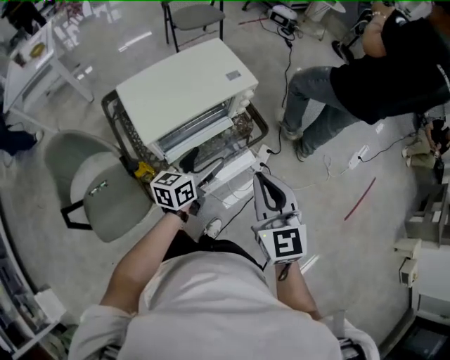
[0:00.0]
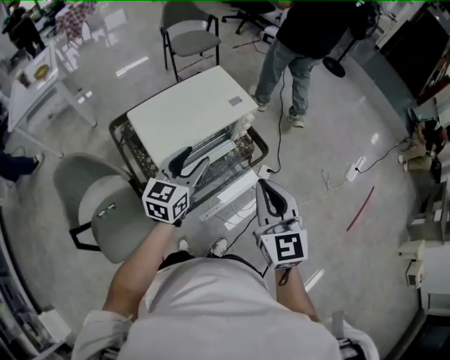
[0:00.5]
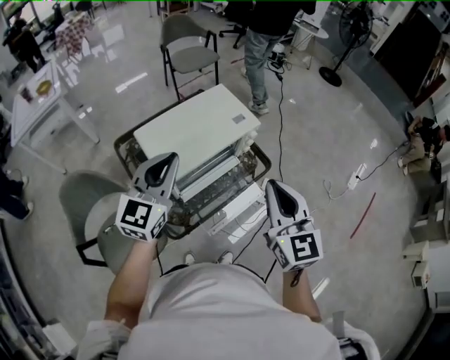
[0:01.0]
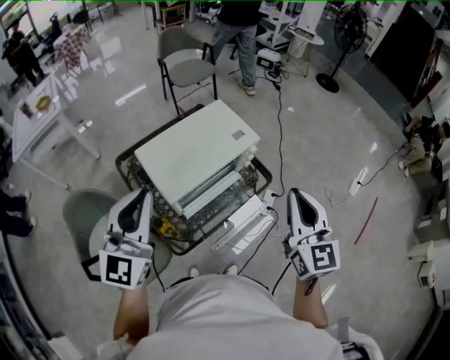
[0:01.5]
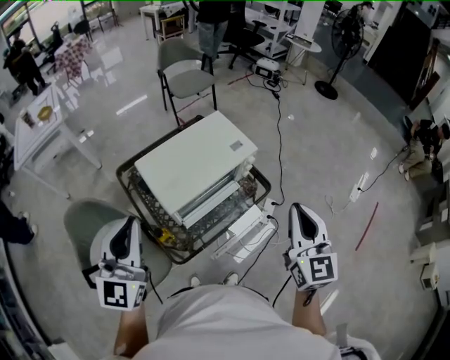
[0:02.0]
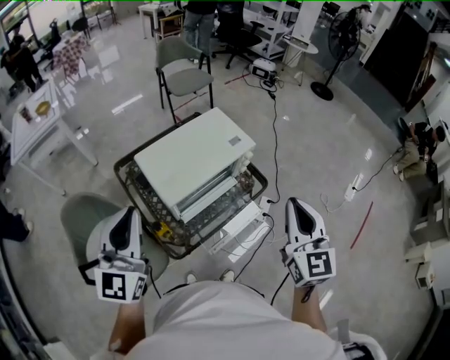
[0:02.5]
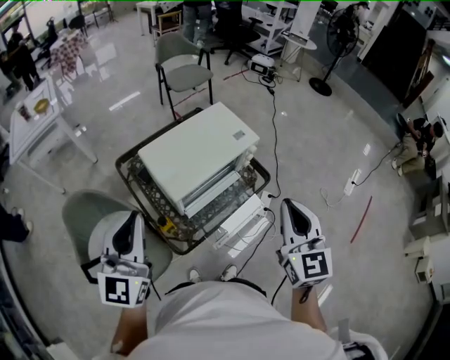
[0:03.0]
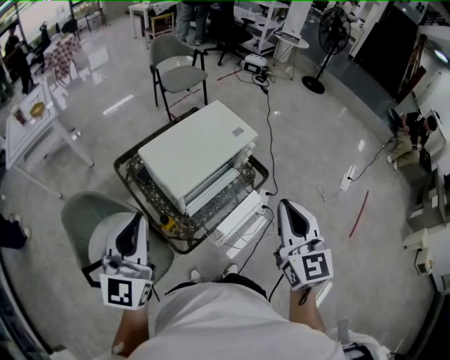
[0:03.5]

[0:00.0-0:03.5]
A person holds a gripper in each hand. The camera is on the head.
0:00.0 to 0:02.0: The left gripper shifts approximately 35 cm upward and to the left, rolls clockwise, seen from behind, by some 40 degrees, and closes, while the right gripper shifts approximately 10 cm upward.
0:02.0 to 0:03.5: The left gripper moves about 5 cm; the right gripper goes some 10 cm to the left and backward.

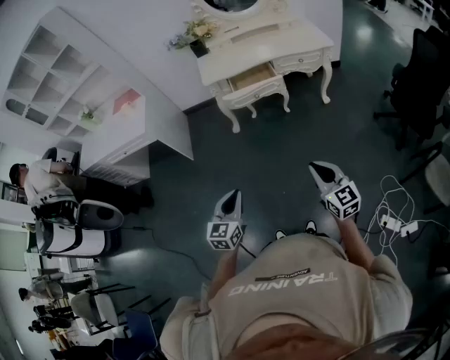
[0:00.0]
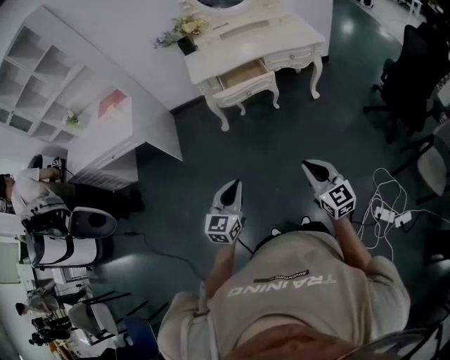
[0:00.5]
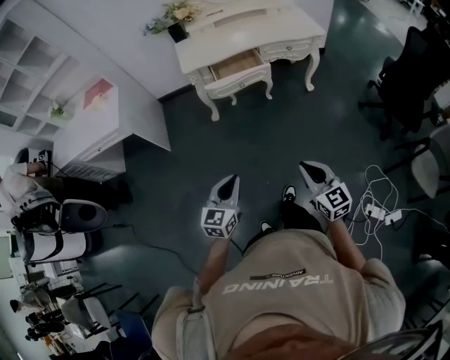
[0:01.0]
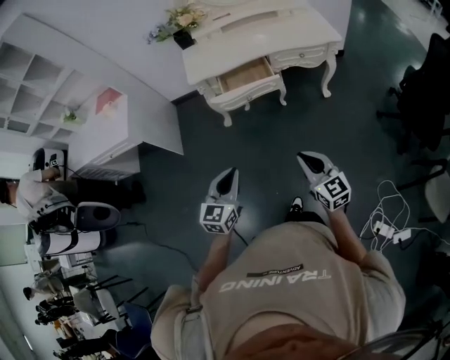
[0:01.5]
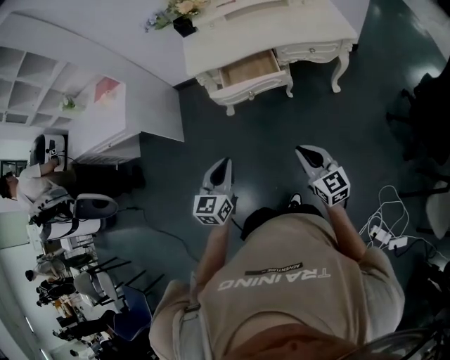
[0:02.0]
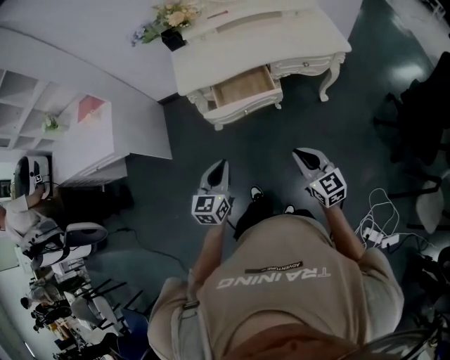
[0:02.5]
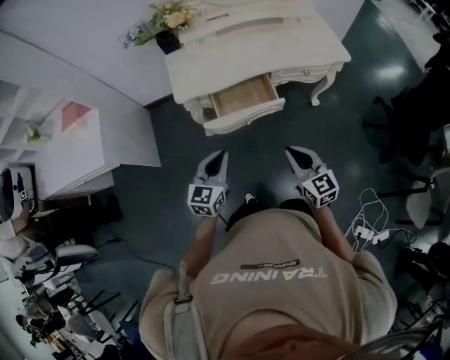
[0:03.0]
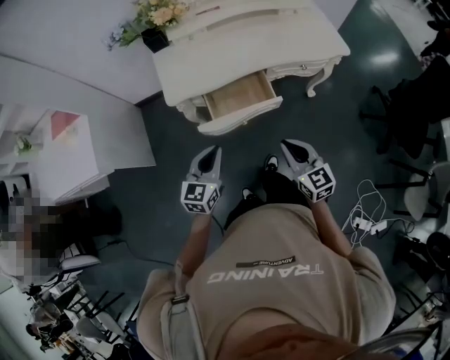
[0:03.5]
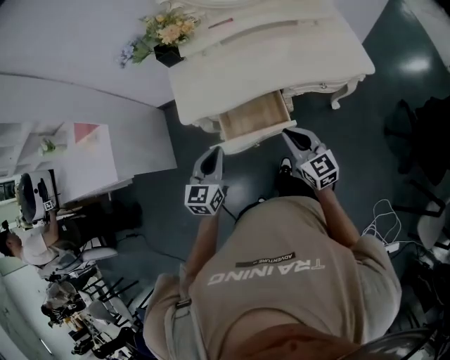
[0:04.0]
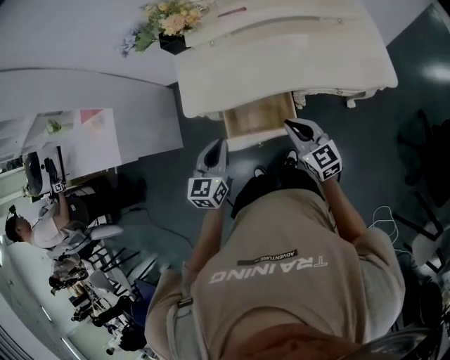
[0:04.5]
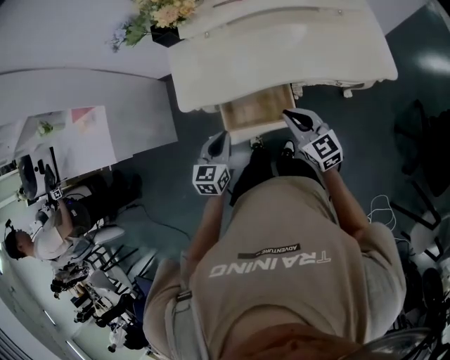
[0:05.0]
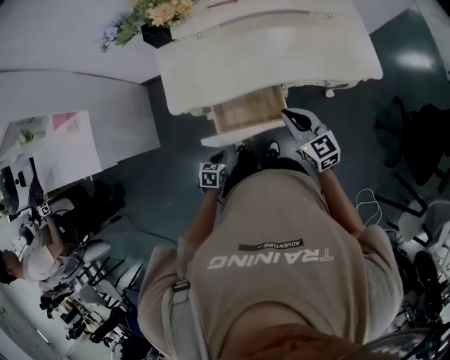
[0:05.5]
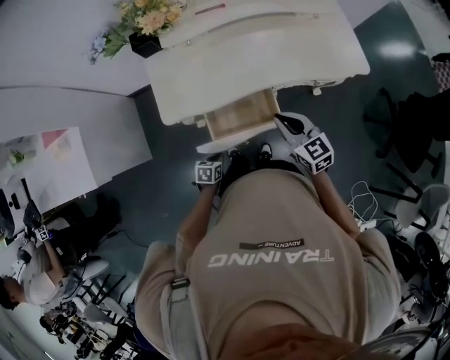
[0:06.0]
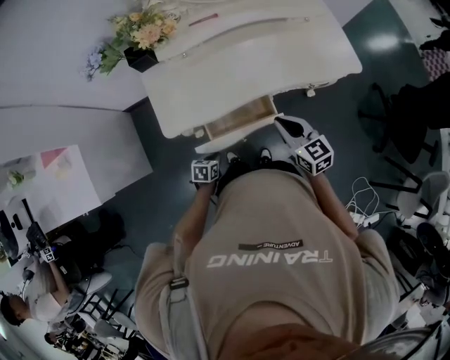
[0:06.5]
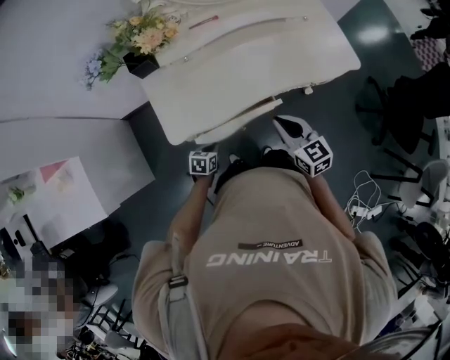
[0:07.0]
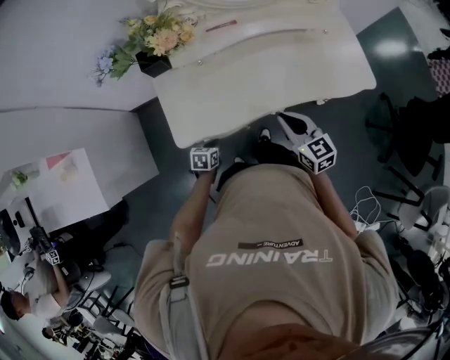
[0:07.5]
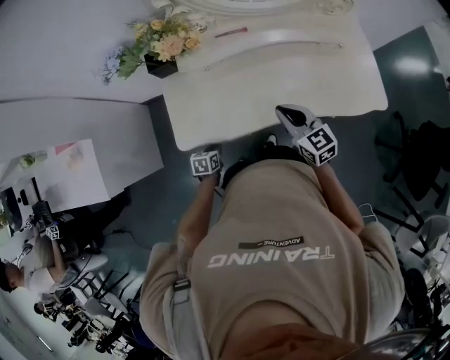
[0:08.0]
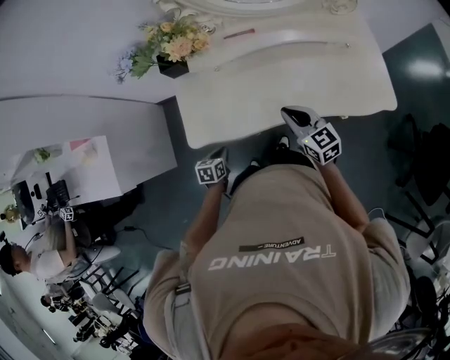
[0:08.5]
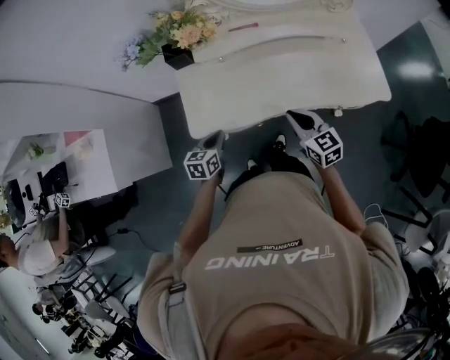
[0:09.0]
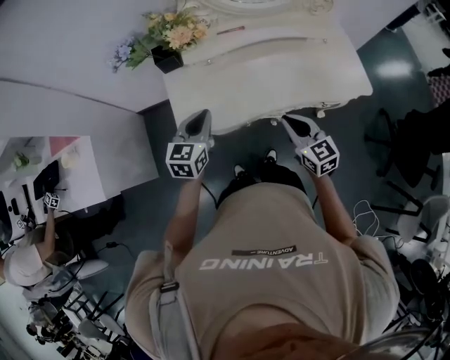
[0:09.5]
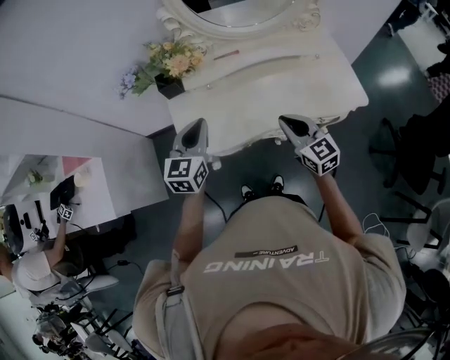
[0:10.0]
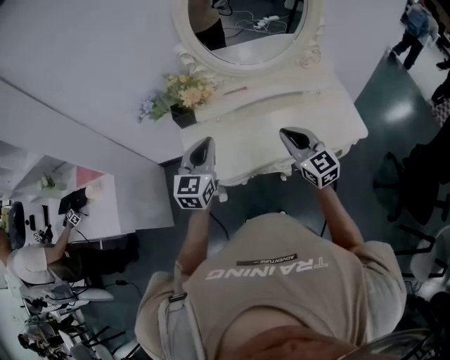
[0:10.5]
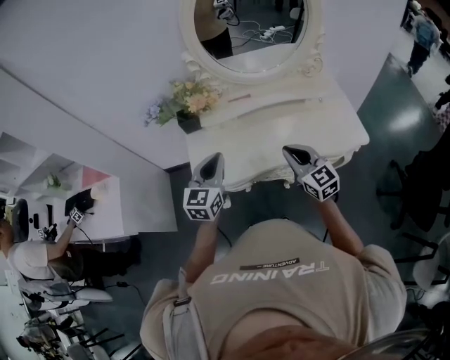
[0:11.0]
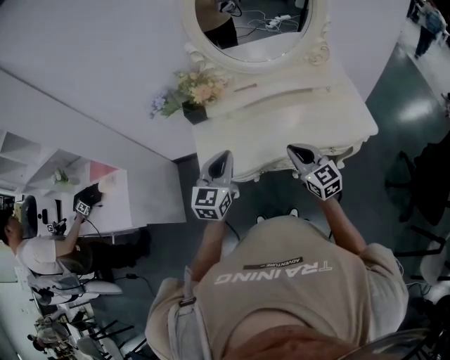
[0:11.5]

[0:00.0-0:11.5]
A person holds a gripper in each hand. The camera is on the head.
0:00.0 to 0:02.0: Both grippers travel together forward, roughly 30 cm.
0:02.0 to 0:04.0: The pair of grippers is taken forward, about 40 cm.
0:04.0 to 0:06.0: The right gripper heads forward, covering some 10 cm. Meanwhile the left gripper shifts roughly 30 cm downward, and angles its fingers downward, by roughly 40 degrees.
0:06.0 to 0:07.5: The left gripper goes roughly 20 cm forward and to the left. The right gripper goes some 10 cm forward and to the left.
0:07.5 to 0:09.5: The right gripper goes roughly 5 cm backward, while the left gripper is displaced upward by roughly 30 cm, and points its fingers approximately 30 degrees further upward.
0:09.5 to 0:11.5: The right gripper shifts some 10 cm upward; the left gripper moves upward, to the right and backward, some 15 cm.

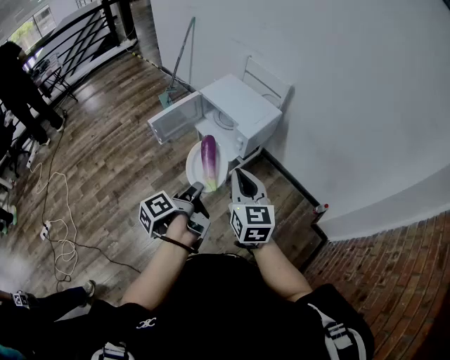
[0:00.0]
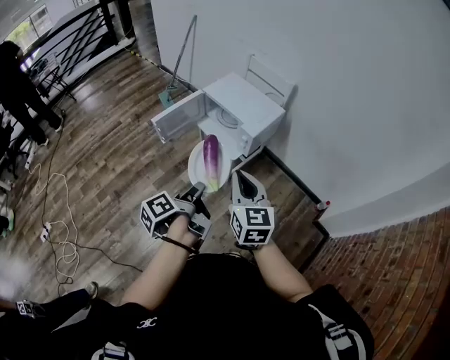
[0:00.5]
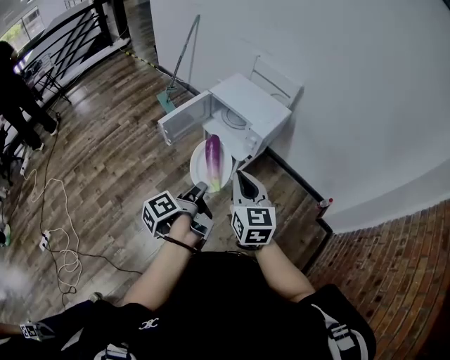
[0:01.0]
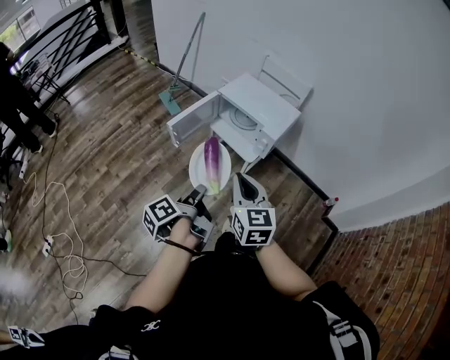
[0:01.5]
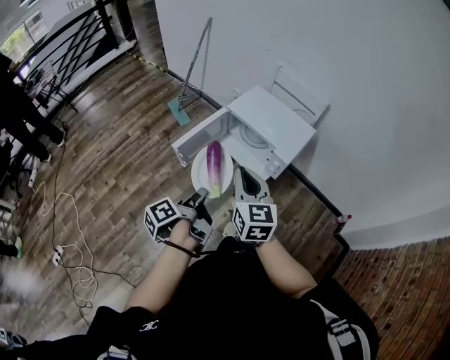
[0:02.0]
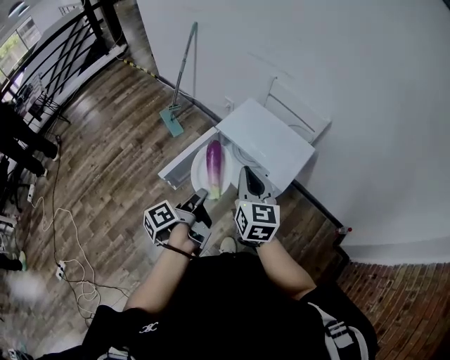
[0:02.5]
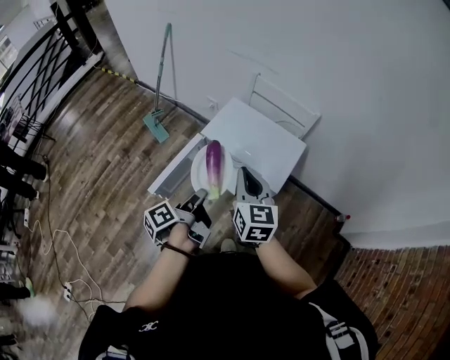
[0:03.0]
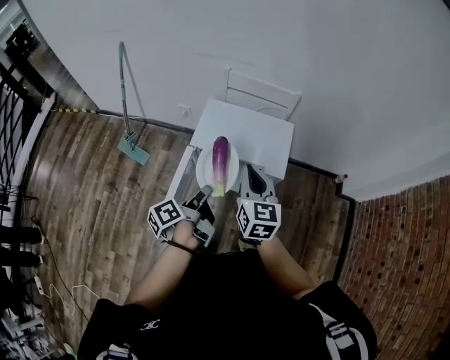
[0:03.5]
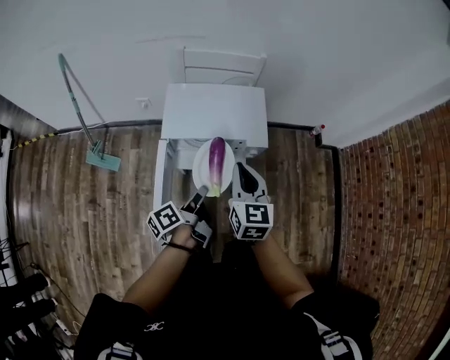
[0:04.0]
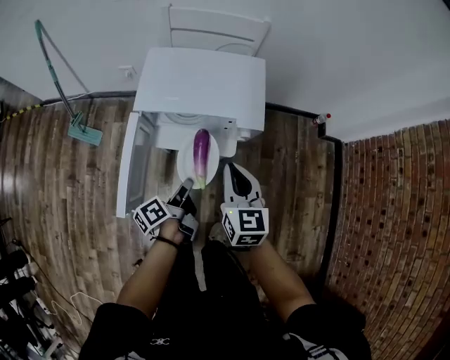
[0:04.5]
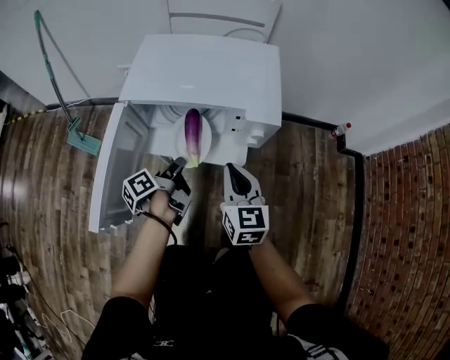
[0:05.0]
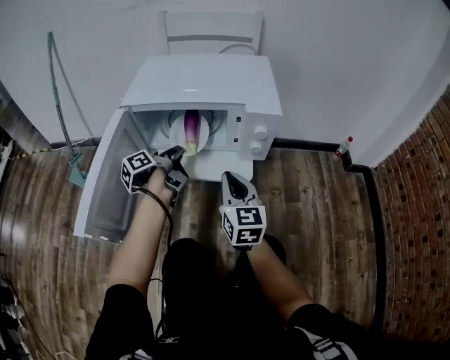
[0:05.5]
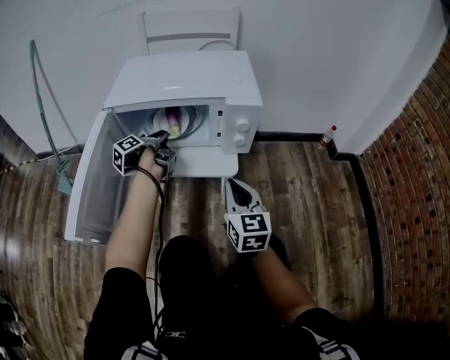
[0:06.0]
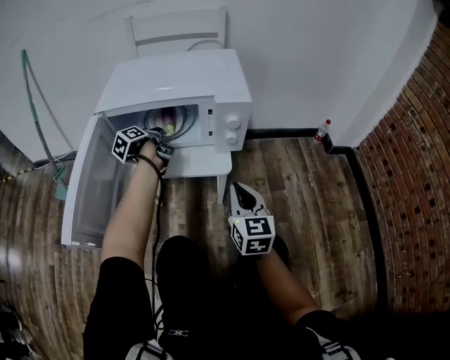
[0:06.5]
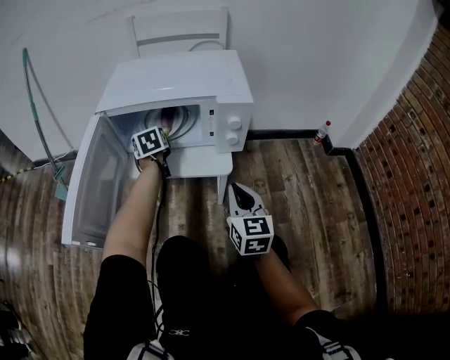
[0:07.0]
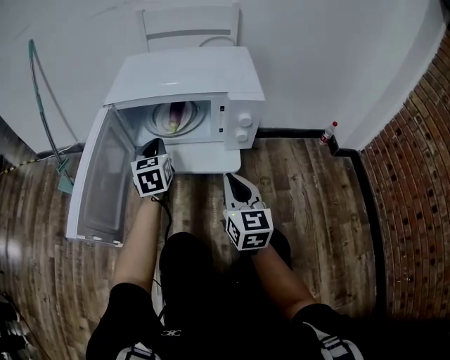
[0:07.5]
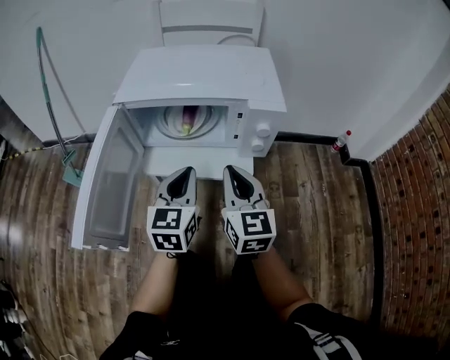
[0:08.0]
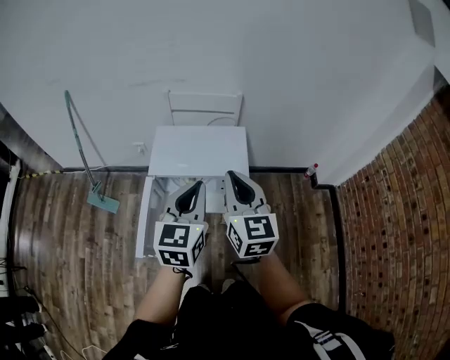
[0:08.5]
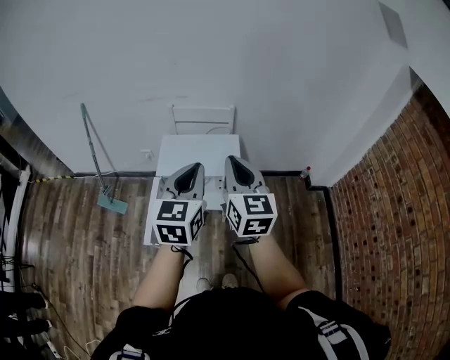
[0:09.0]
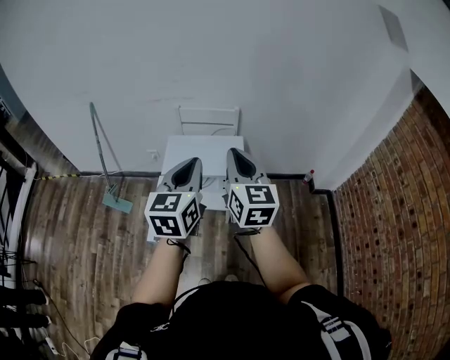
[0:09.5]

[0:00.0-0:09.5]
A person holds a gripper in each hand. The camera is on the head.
0:00.0 to 0:02.0: The right gripper ends up about 25 cm from where it was.
0:02.0 to 0:04.0: The right gripper moves roughly 20 cm, and changes its angle by approximately 50 degrees.
0:04.0 to 0:05.5: The right gripper heads downward, covering about 35 cm.
0:07.5 to 0:09.5: The right gripper shifts some 60 cm upward.

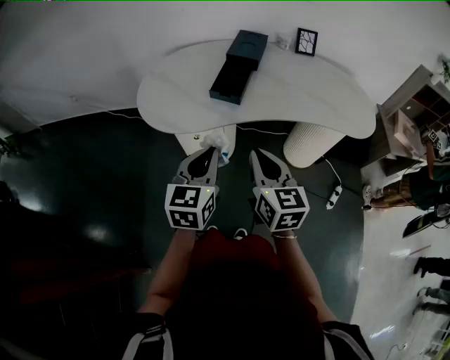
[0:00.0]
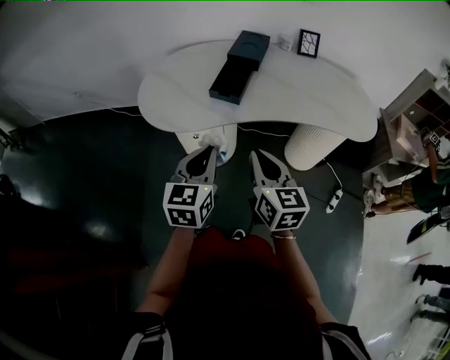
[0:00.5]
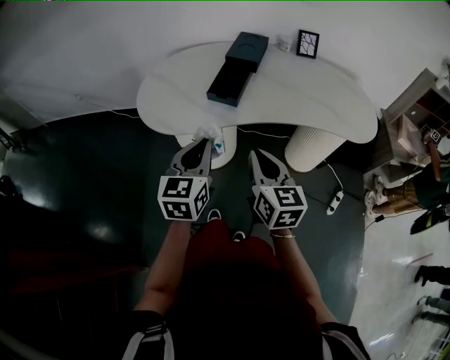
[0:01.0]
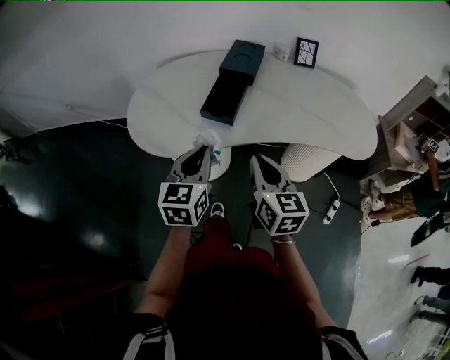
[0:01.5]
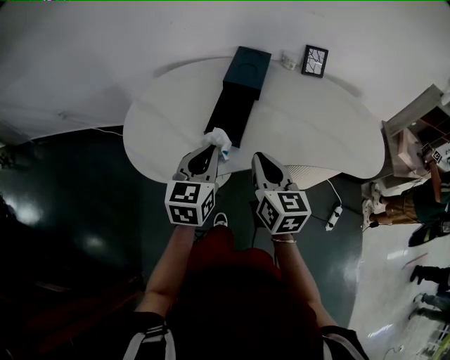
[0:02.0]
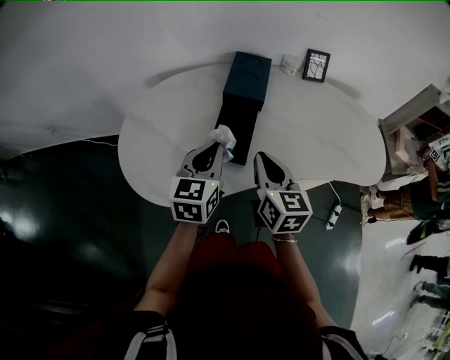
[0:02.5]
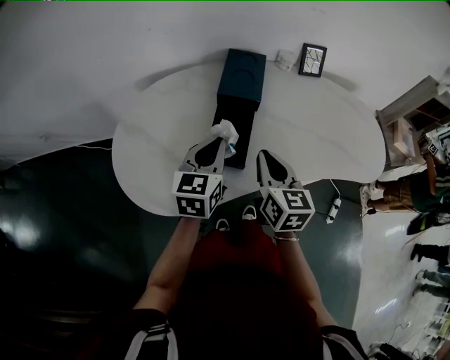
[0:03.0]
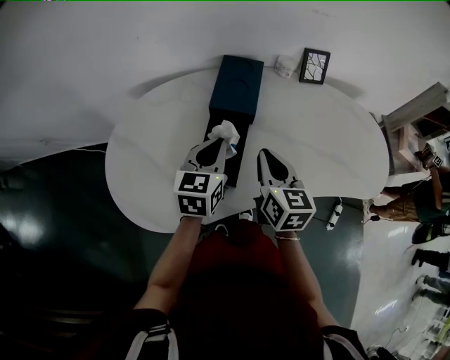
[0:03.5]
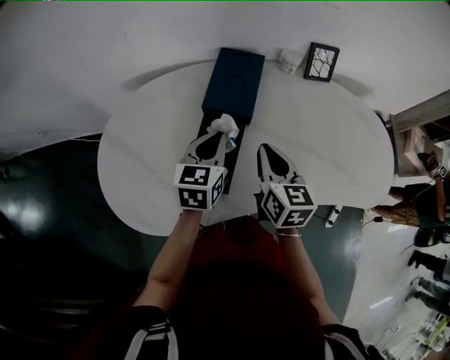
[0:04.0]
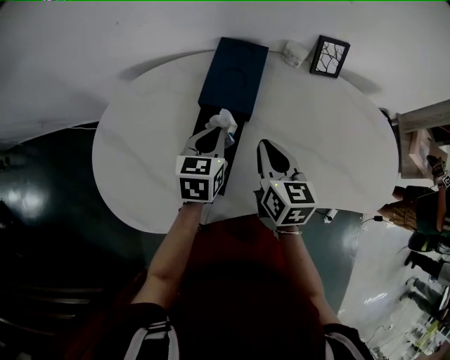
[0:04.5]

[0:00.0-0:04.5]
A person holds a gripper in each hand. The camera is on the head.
0:00.0 to 0:02.0: Both grippers move forward, approximately 20 cm.
0:02.0 to 0:04.5: The right gripper heads forward, covering some 20 cm. Meanwhile the left gripper heads forward and downward, covering some 25 cm.
